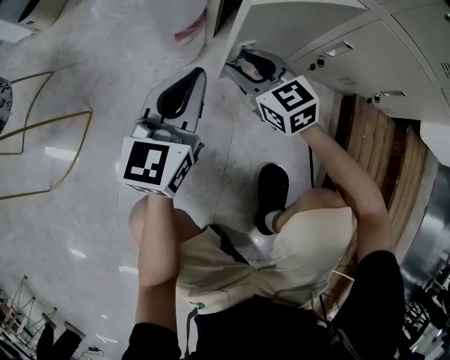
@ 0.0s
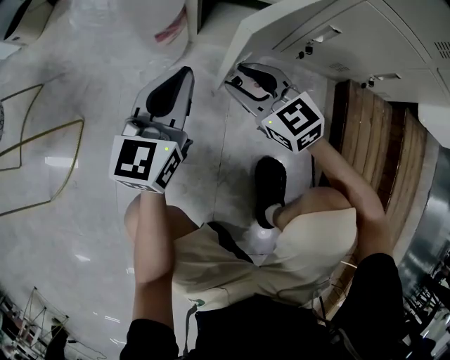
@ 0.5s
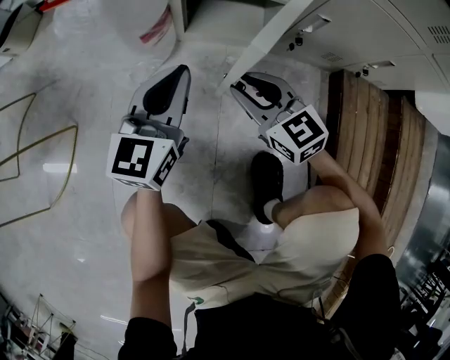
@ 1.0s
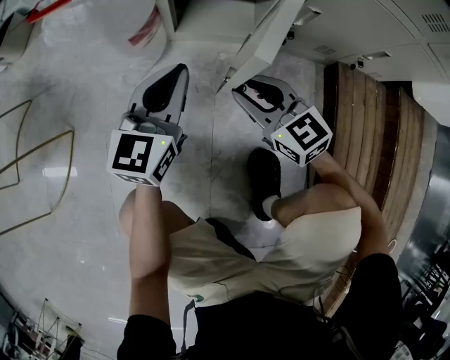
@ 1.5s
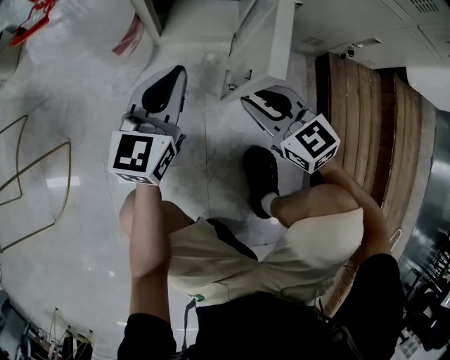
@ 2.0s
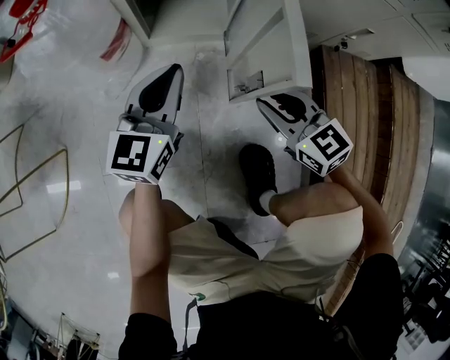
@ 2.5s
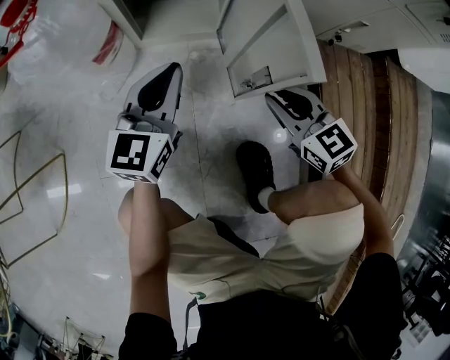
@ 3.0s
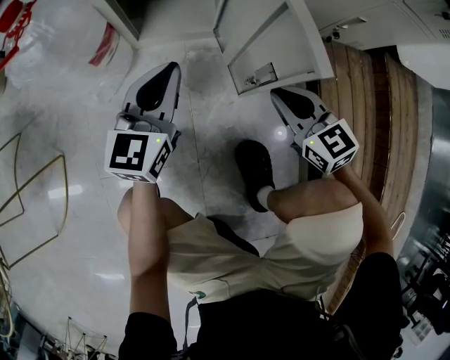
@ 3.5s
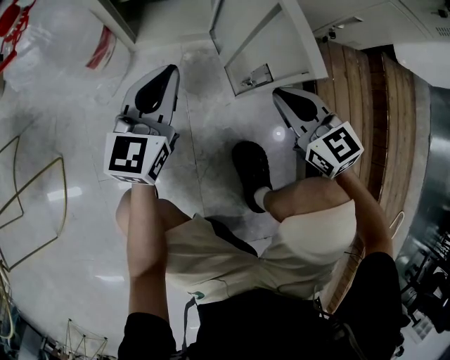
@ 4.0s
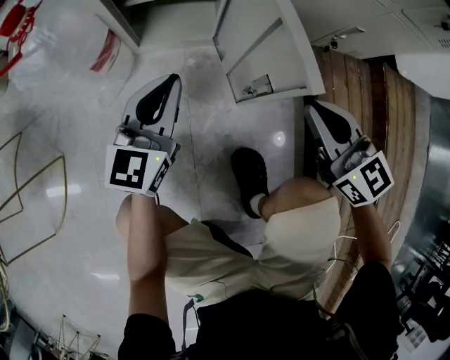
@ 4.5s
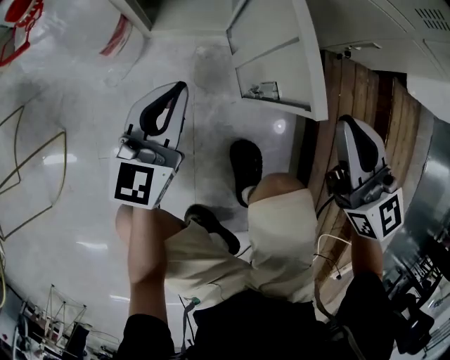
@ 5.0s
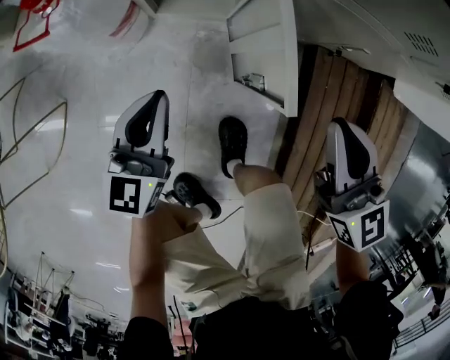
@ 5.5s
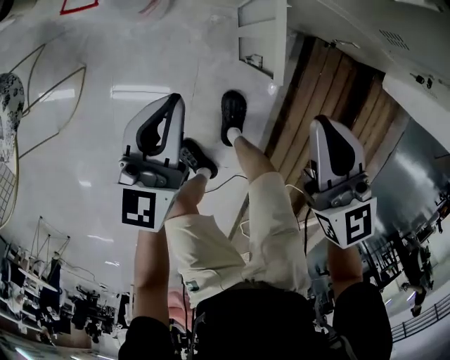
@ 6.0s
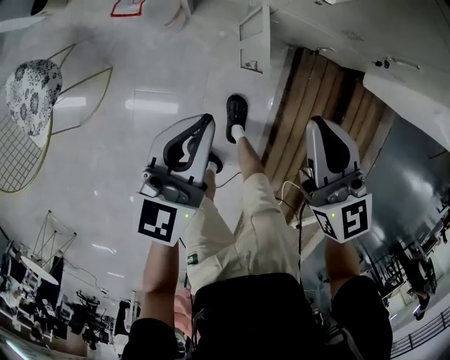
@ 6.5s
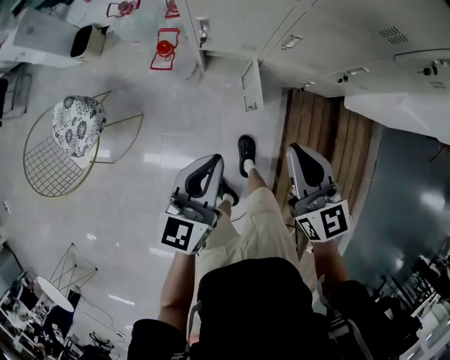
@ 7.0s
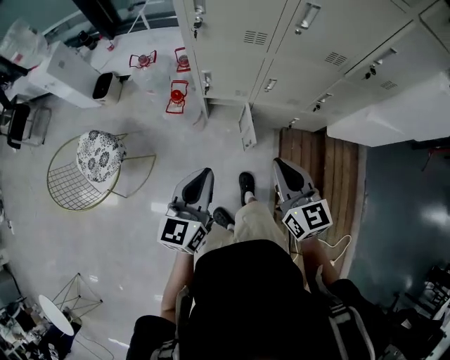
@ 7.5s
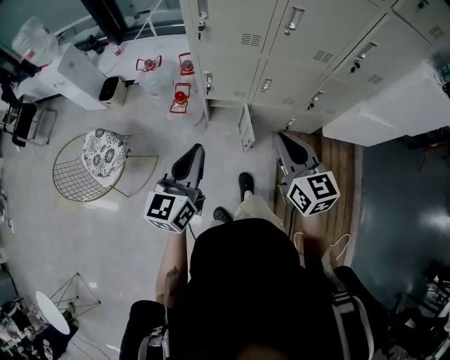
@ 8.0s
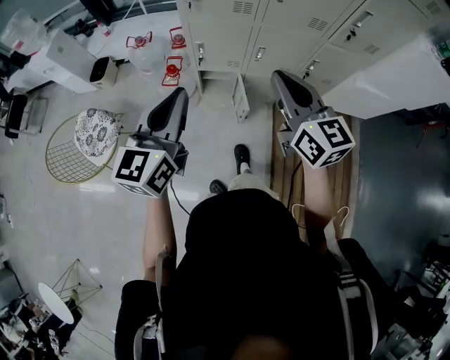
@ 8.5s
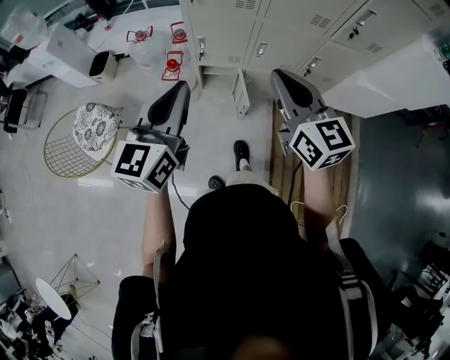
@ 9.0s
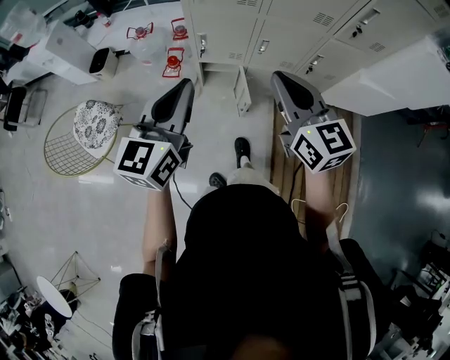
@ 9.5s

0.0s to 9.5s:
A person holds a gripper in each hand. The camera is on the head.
0.0s to 2.0s: The left gripper is displaced to the right by about 10 cm, while the right gripper heads to the right and backward, covering approximately 15 cm.
2.0s to 4.0s: The right gripper shifts roughly 10 cm to the right, and closes up.
4.0s to 5.5s: The right gripper travels upward by about 25 cm, while the left gripper moves upward, about 10 cm.
5.5s to 7.5s: Both grippers move upward, about 60 cm.
7.5s to 9.5s: The grippers both shift upward by roughly 15 cm.

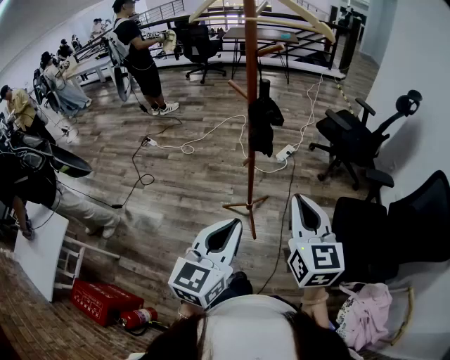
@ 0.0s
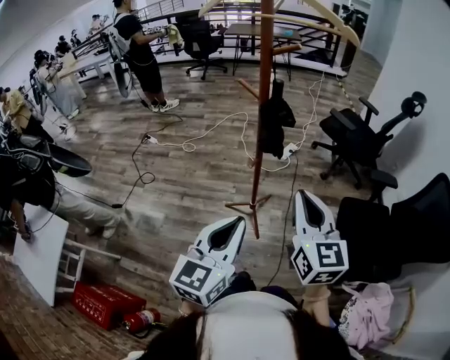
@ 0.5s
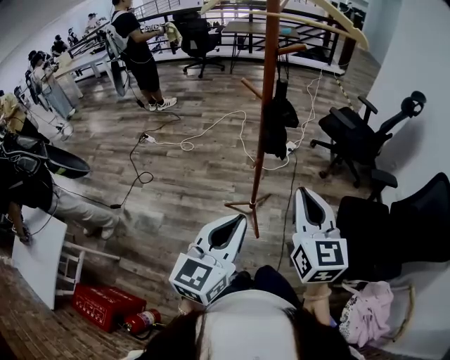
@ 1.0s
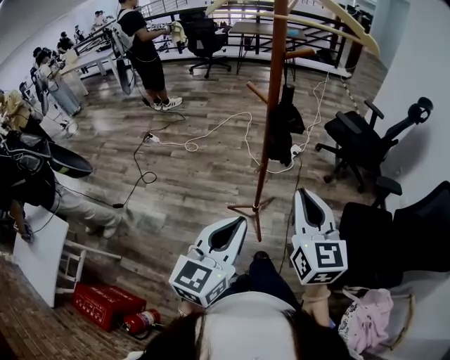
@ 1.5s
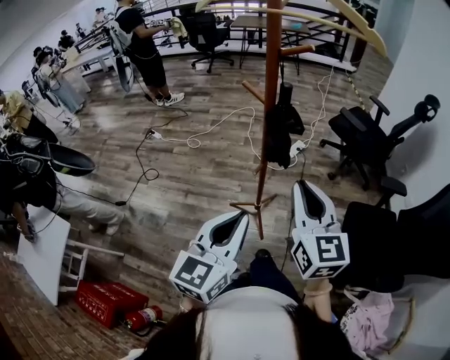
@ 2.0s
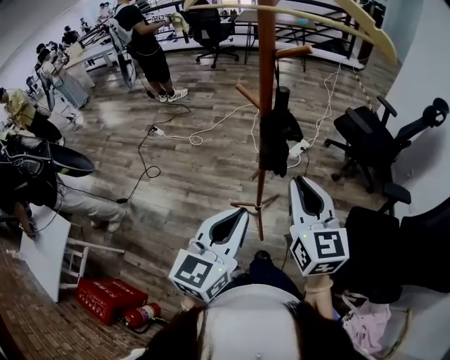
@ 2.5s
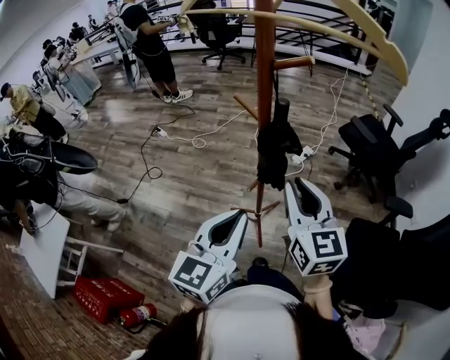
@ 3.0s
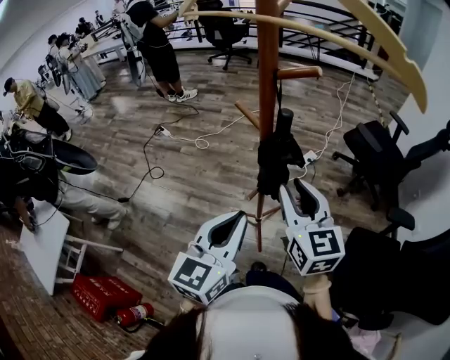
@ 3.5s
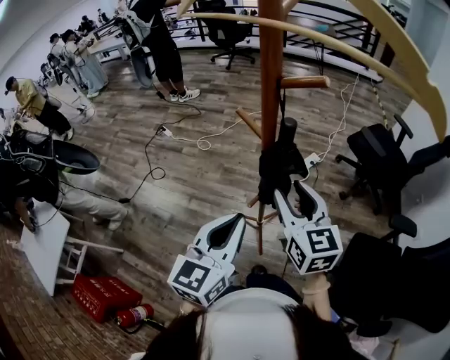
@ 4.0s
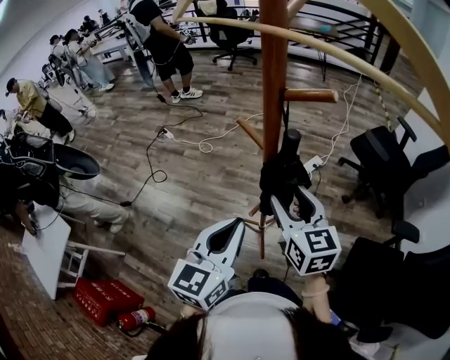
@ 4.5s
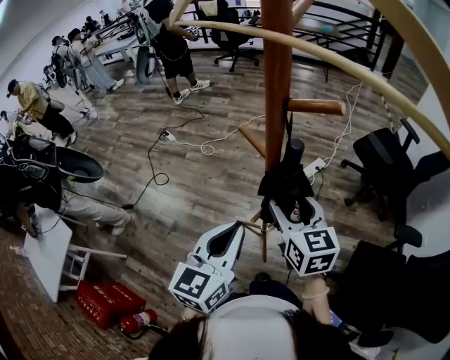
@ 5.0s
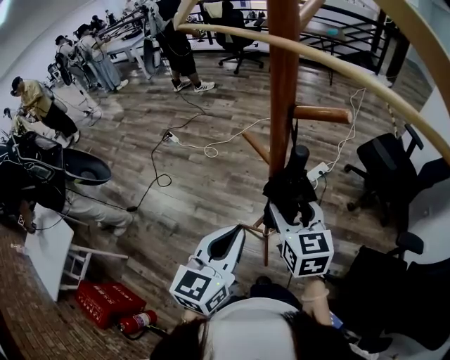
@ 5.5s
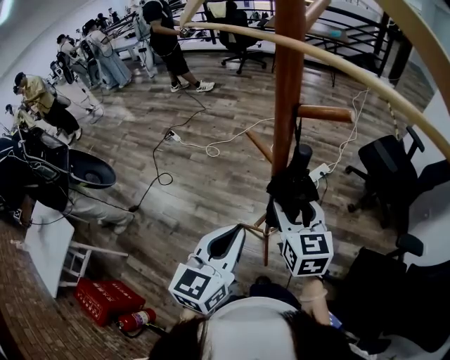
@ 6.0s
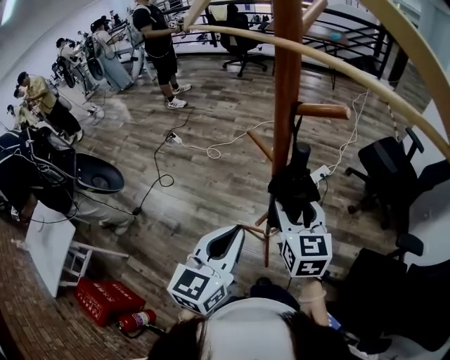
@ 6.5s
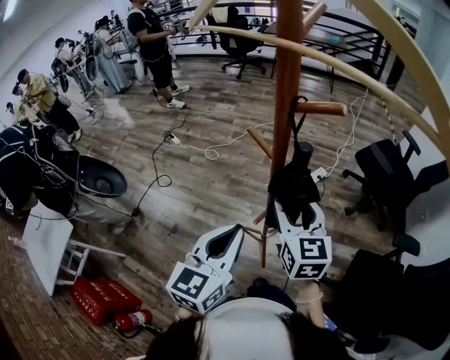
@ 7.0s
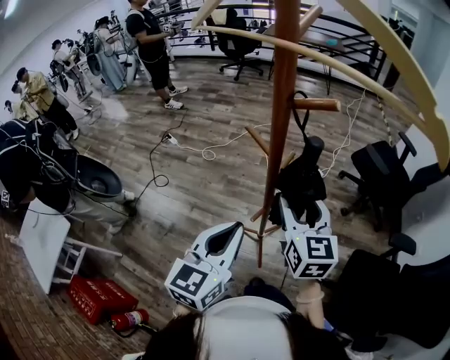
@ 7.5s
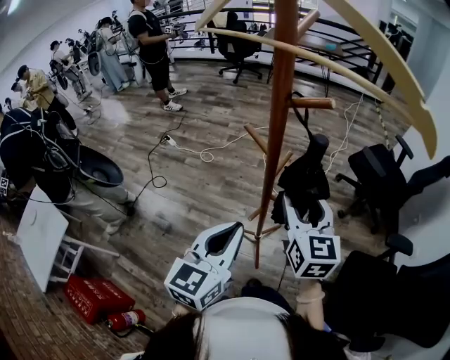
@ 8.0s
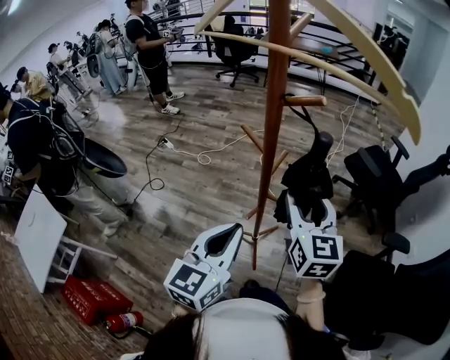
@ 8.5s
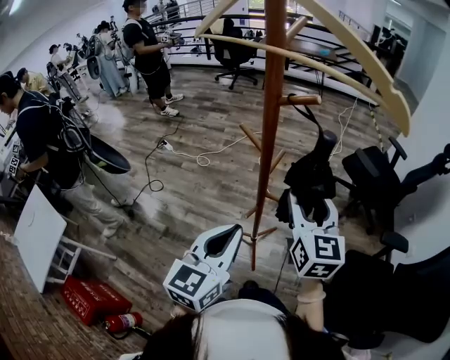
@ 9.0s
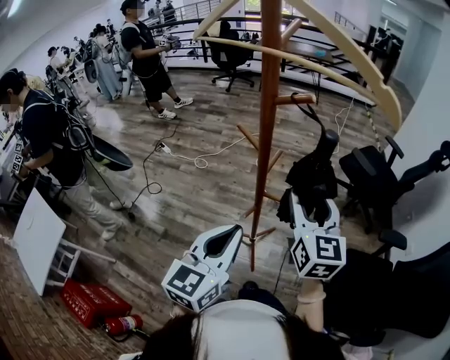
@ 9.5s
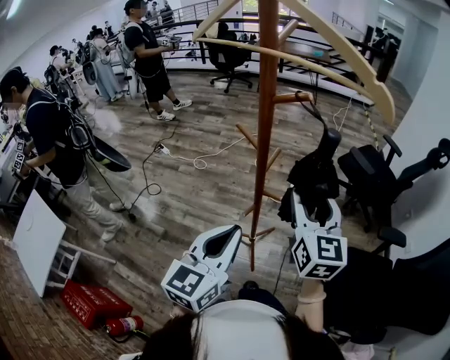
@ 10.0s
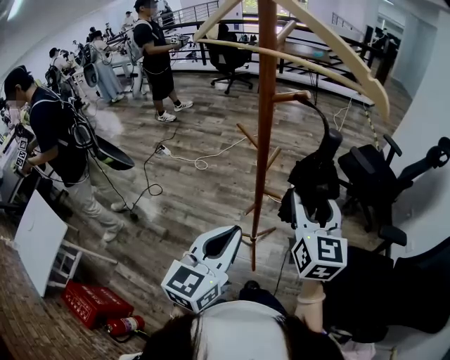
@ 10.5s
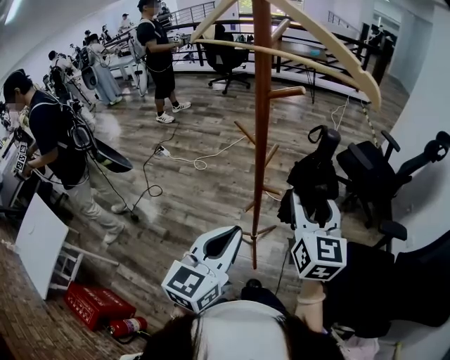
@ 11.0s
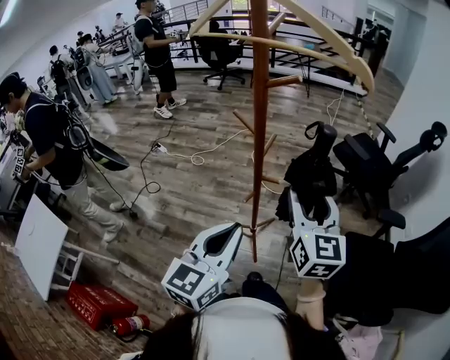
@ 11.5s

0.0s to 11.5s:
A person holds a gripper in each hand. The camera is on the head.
0.0s to 2.0s: The grippers both shift forward by some 10 cm.
2.0s to 4.0s: The two grippers go some 15 cm forward. The right gripper opens.
4.0s to 6.0s: The left gripper ends up roughly 5 cm from where it was, while the right gripper is displaced forward by about 5 cm.
6.0s to 7.5s: The right gripper shifts by approximately 5 cm.
7.5s to 9.5s: The left gripper ends up roughly 5 cm from where it was; the right gripper shifts roughly 10 cm upward and to the right.
9.5s to 11.5s: The grippers both shift backward by approximately 5 cm.

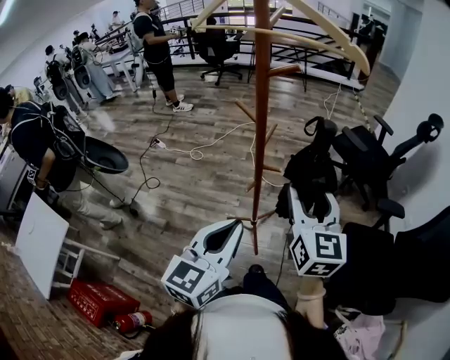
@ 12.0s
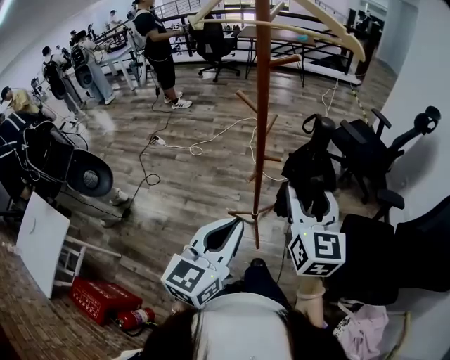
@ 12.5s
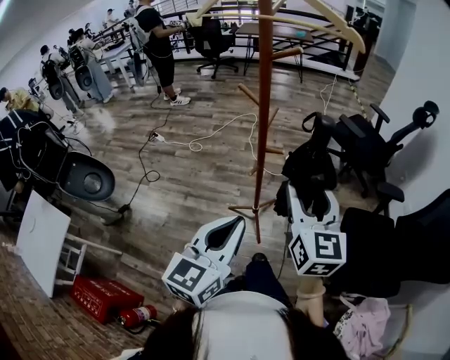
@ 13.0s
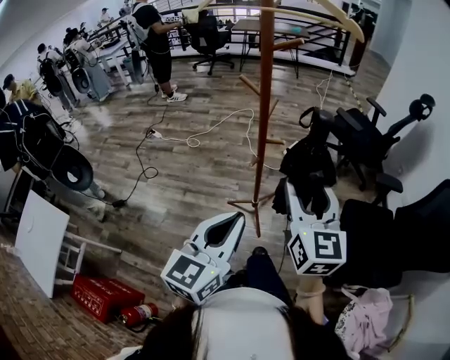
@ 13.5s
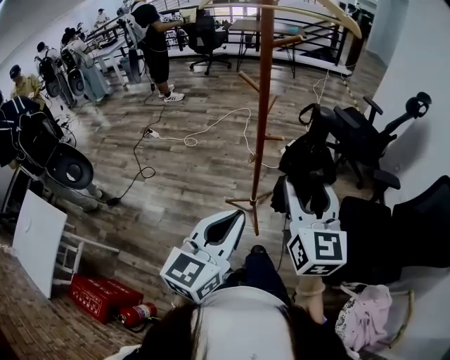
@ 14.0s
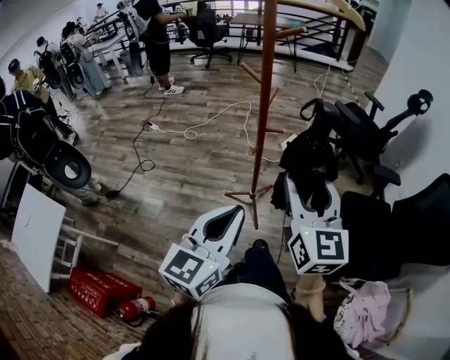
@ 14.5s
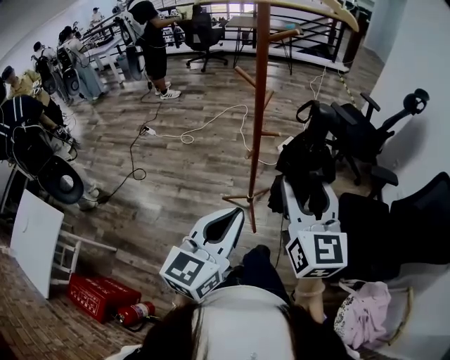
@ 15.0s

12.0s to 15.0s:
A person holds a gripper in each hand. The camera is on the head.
12.0s to 13.5s: The two grippers go some 10 cm backward.
13.5s to 15.0s: The grippers stay close to where they were, moving slightly.

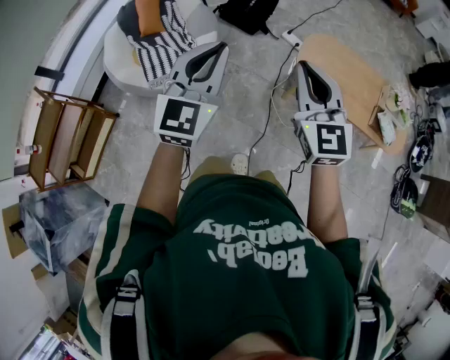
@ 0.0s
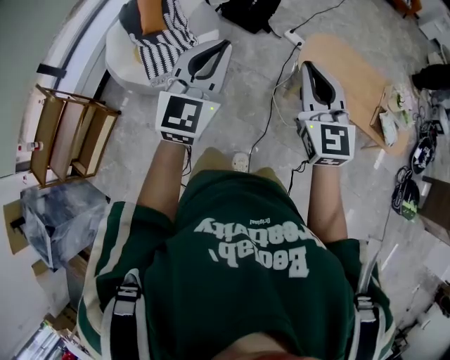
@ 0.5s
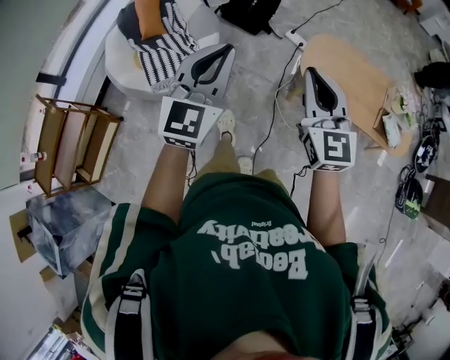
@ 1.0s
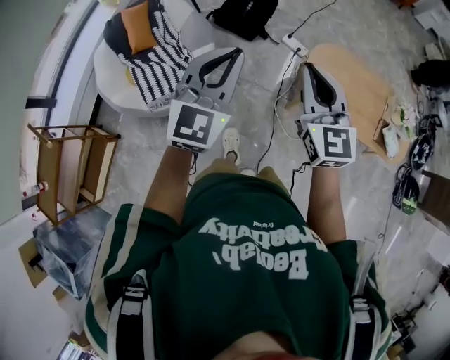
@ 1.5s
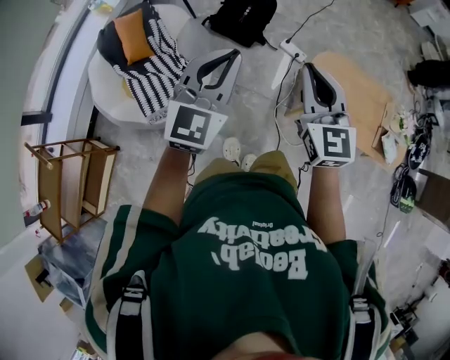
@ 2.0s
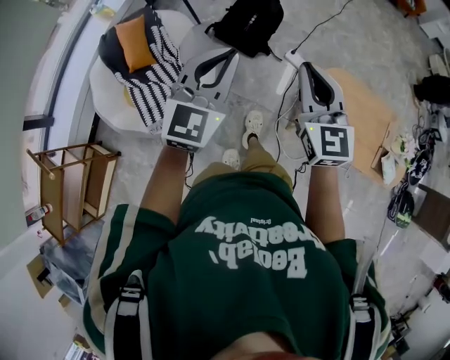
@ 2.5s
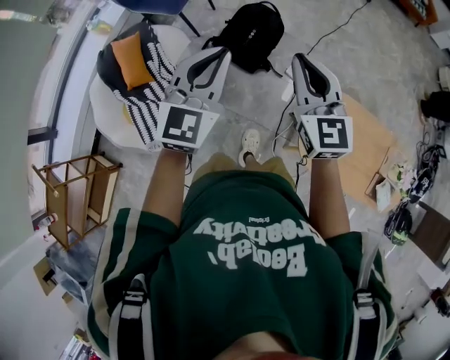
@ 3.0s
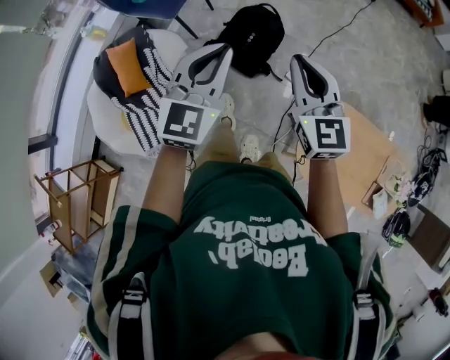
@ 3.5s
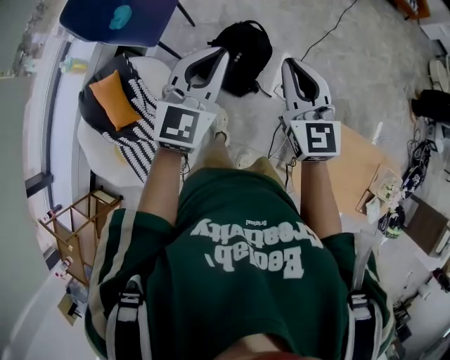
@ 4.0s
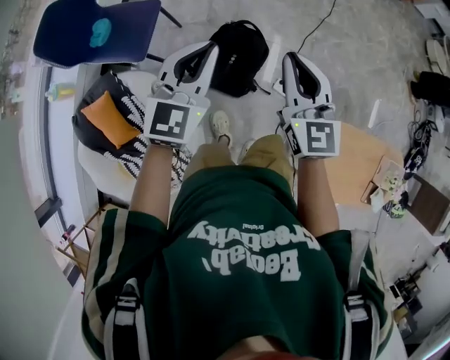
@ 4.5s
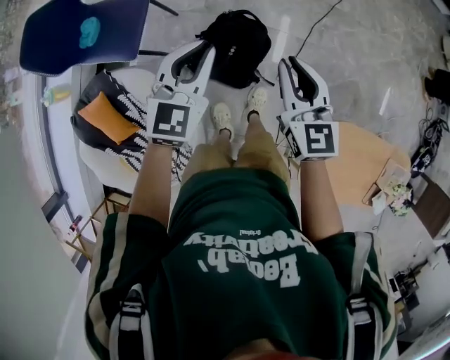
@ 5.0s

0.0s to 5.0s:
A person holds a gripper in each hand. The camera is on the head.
0.0s to 2.5s: The pair of grippers is taken forward, roughly 50 cm.
2.5s to 5.0s: Both grippers are carried forward, about 70 cm.
